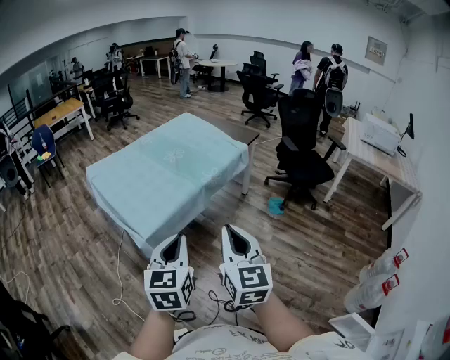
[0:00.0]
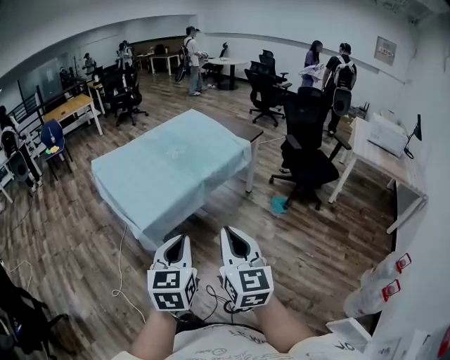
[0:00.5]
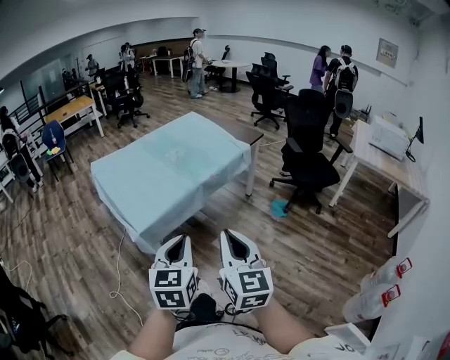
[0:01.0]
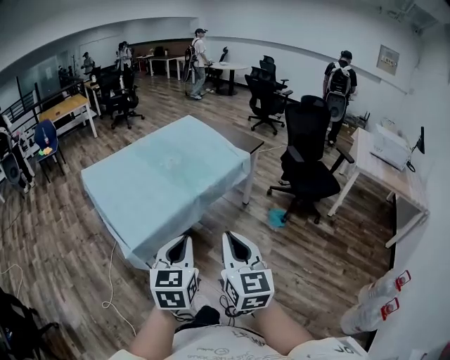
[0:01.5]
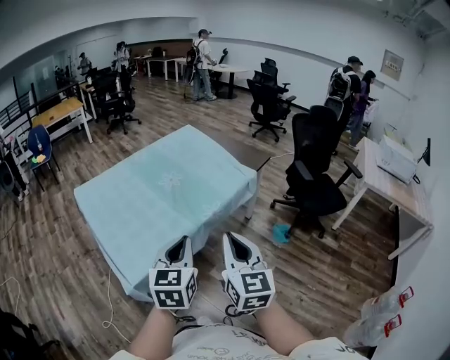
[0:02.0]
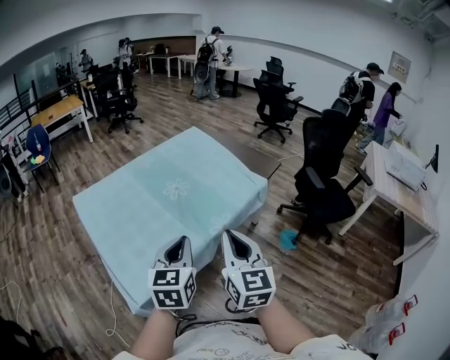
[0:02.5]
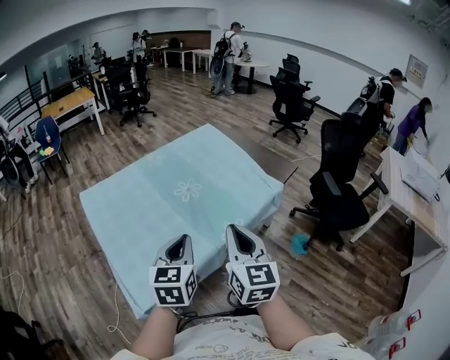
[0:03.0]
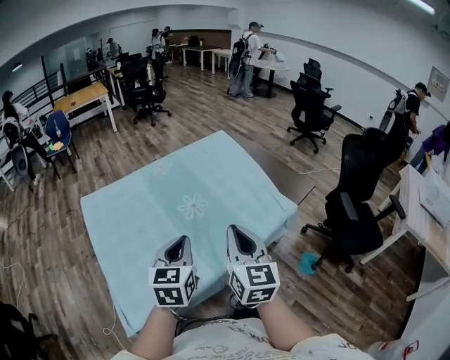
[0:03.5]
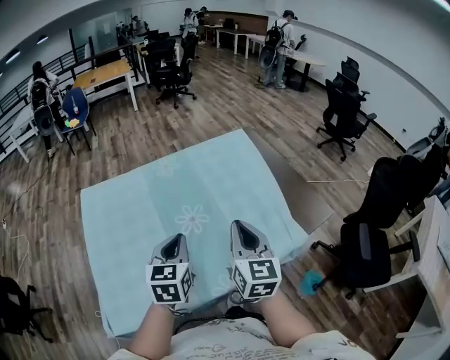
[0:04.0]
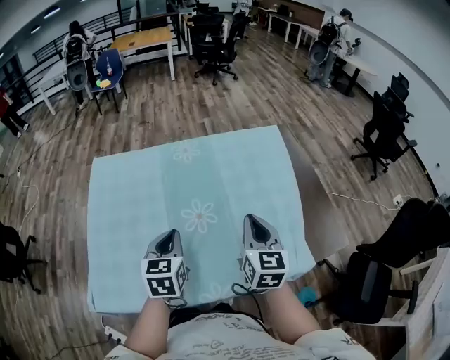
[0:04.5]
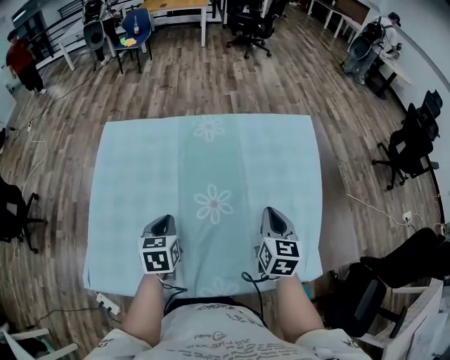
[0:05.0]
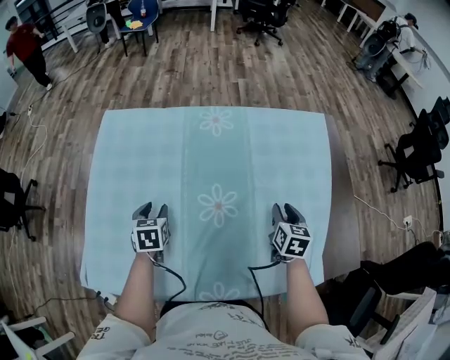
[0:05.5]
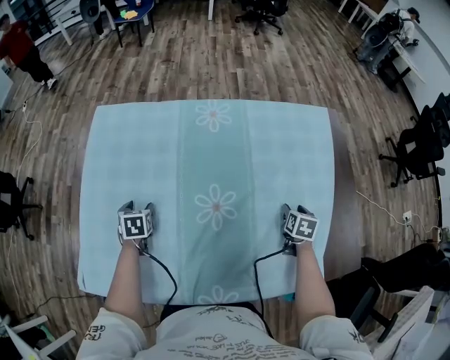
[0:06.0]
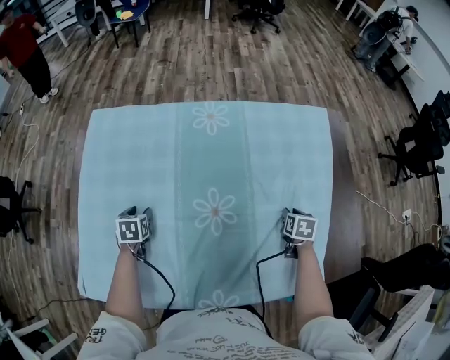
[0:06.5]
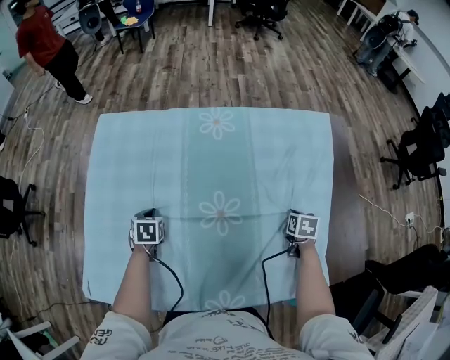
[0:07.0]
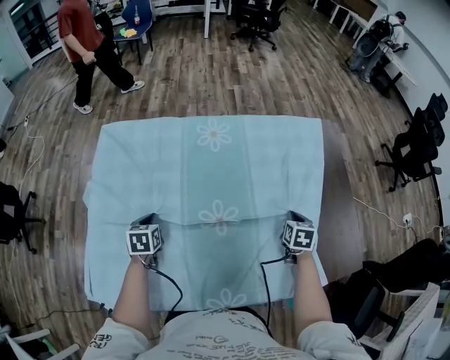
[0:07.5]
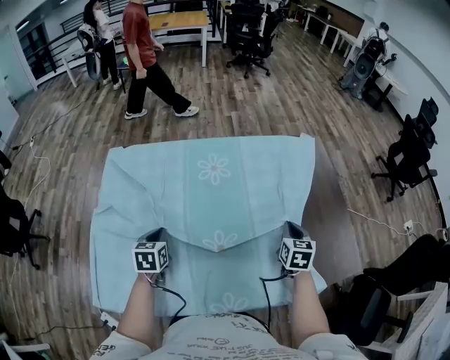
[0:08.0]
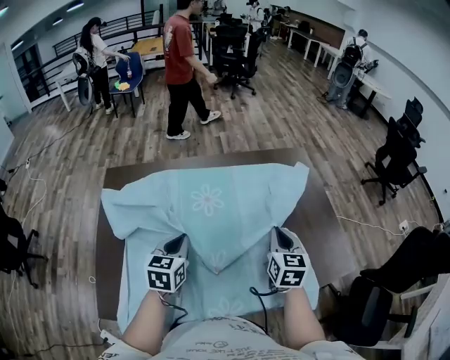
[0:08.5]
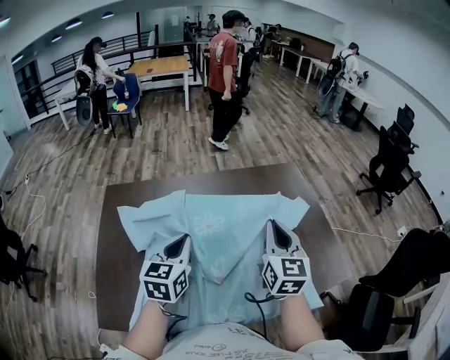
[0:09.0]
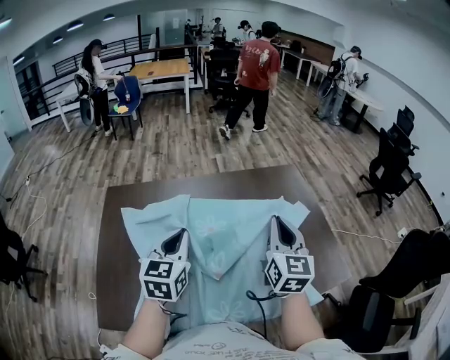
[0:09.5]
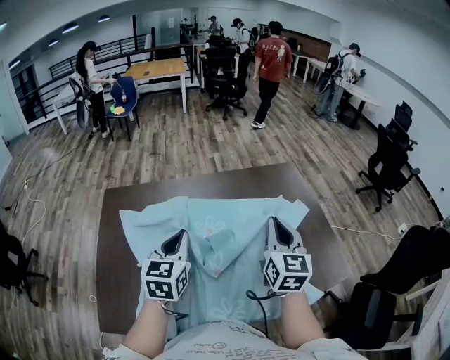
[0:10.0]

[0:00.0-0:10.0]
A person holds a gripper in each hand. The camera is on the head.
0:00.0 to 0:02.0: Both grippers move forward, approximately 25 cm.
0:02.0 to 0:04.0: Both grippers are carried forward, roughly 50 cm. The left gripper turns by approximately 30 degrees.
0:04.0 to 0:06.0: The right gripper moves downward, forward and to the right, roughly 50 cm, tilts its fingers some 50 degrees downward, and opens its fingers, while the left gripper heads downward, to the left and forward, covering roughly 40 cm, tilts its fingers some 40 degrees downward, and opens its fingers.
0:06.0 to 0:08.0: The left gripper shifts some 15 cm upward and to the right, and closes up; the right gripper moves upward, to the left and backward, roughly 15 cm, turns by approximately 20 degrees, and closes.
0:08.0 to 0:10.0: The right gripper goes roughly 20 cm upward, and tips its fingers upward by approximately 30 degrees. Meanwhile the left gripper shifts roughly 25 cm upward and to the right, and changes its angle by about 30 degrees.

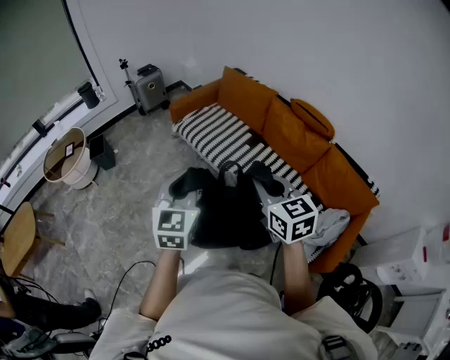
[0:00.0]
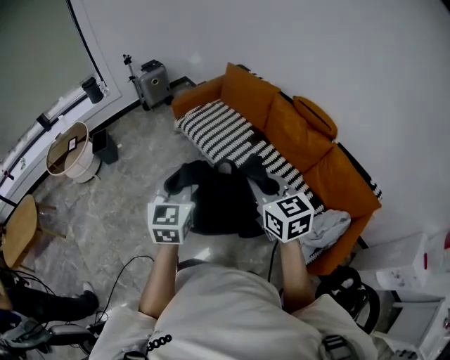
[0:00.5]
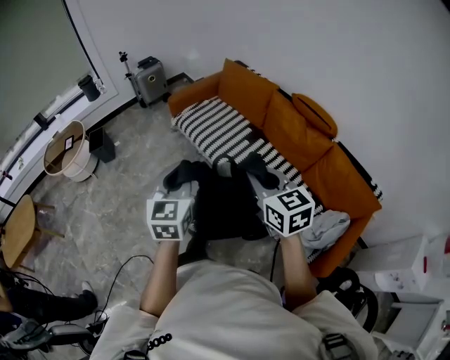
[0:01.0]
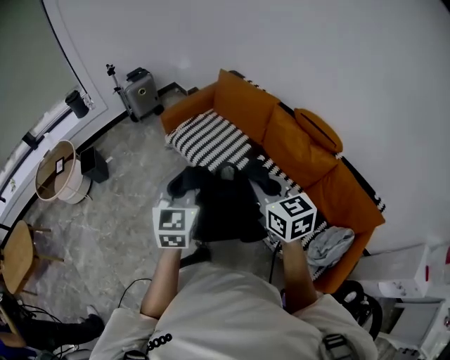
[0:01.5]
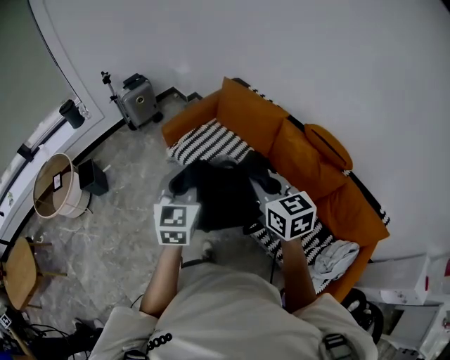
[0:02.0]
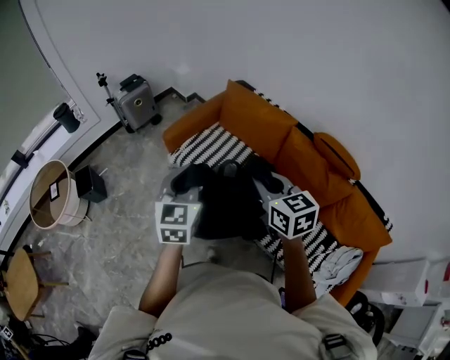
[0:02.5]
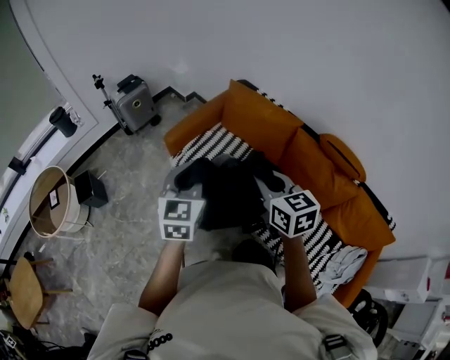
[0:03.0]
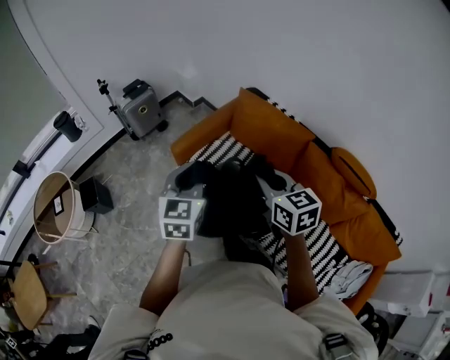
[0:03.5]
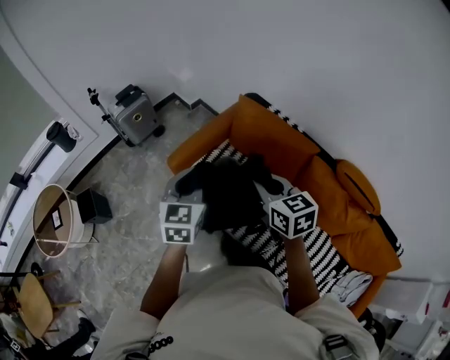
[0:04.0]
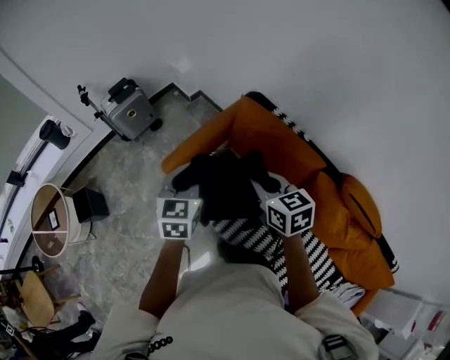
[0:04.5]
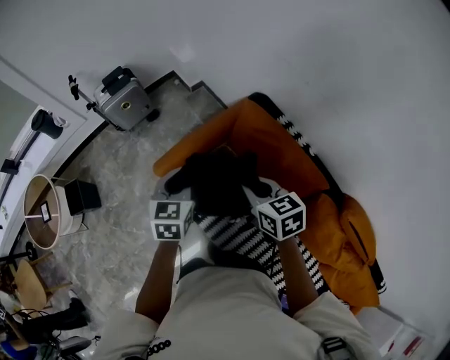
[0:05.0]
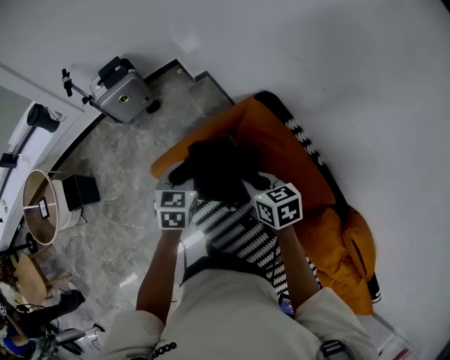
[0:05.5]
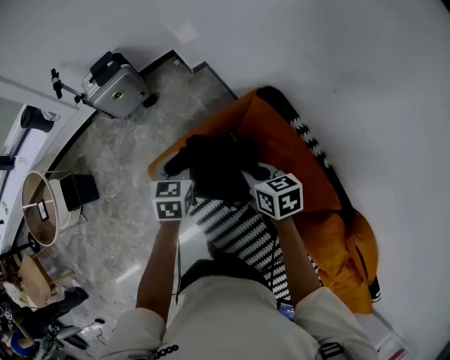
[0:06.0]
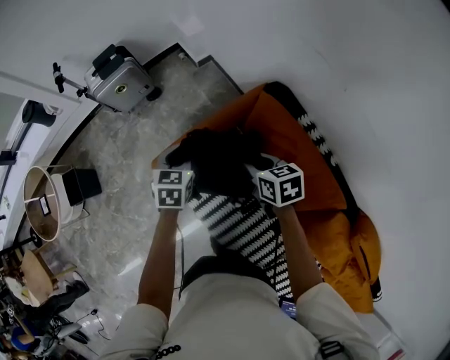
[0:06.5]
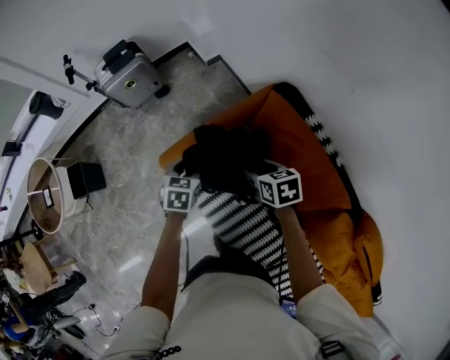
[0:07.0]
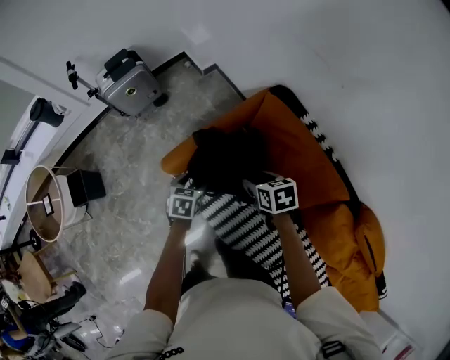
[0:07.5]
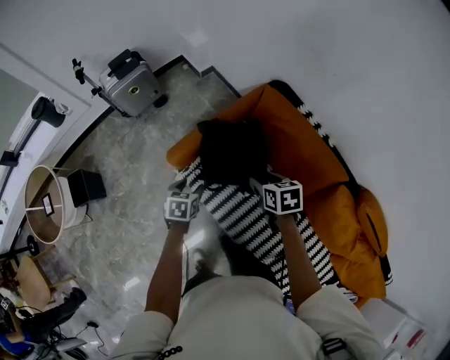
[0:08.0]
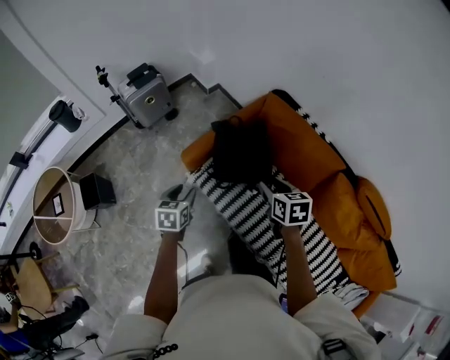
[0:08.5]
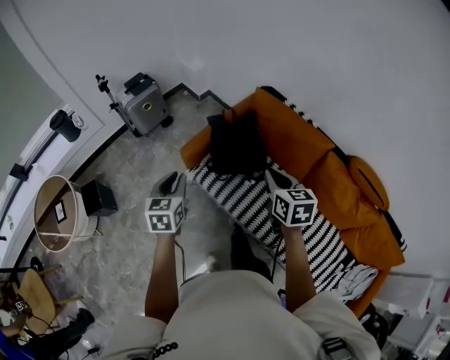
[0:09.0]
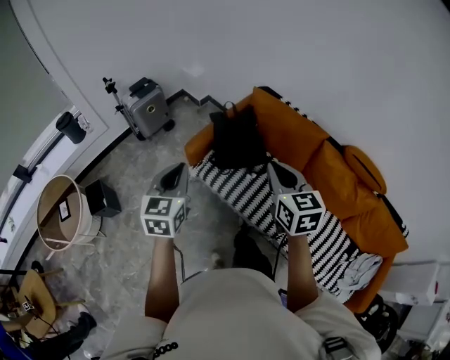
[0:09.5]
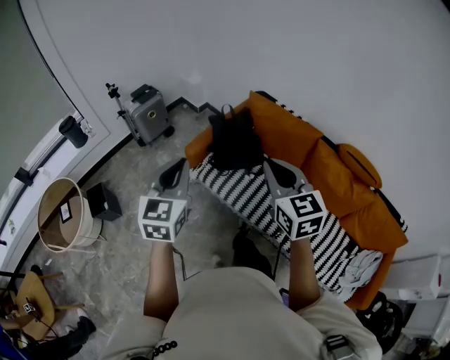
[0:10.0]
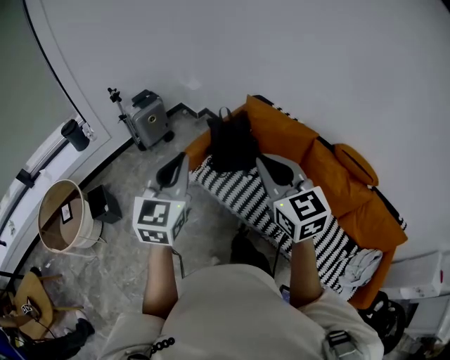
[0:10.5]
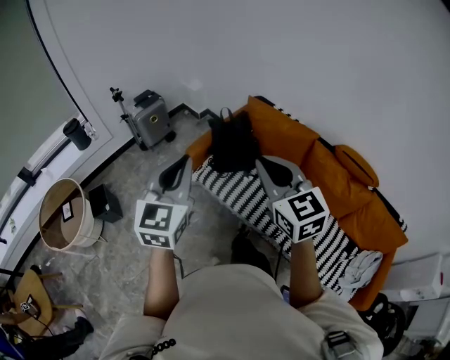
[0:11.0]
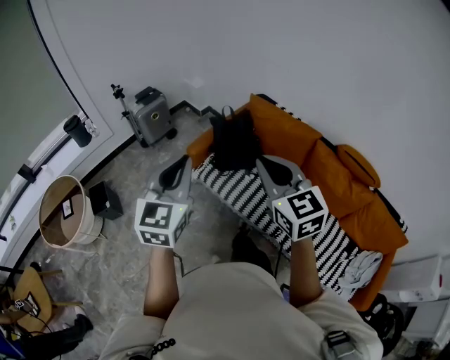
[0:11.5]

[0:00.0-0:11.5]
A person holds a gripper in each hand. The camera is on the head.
0:00.0 to 0:02.0: The two grippers go about 35 cm forward.
0:02.0 to 0:04.0: The grippers both shift forward by about 35 cm.
0:04.0 to 0:06.0: Both grippers travel together forward and downward, roughly 40 cm. The right gripper rotates approximately 30 degrees, while the left gripper swivels about 30 degrees.
0:06.0 to 0:07.5: The left gripper moves downward, backward and to the left, roughly 20 cm, and opens its fingers. The right gripper shifts some 10 cm backward and downward, and opens its fingers.
0:07.5 to 0:09.5: The left gripper heads upward, backward and to the left, covering approximately 50 cm, tilts its fingers approximately 40 degrees upward, and closes its fingers. Meanwhile the right gripper heads backward and upward, covering some 50 cm, tilts its fingers approximately 30 degrees upward, and closes.
0:09.5 to 0:11.5: The left gripper heads upward and backward, covering roughly 15 cm. Meanwhile the right gripper goes about 15 cm backward and upward.

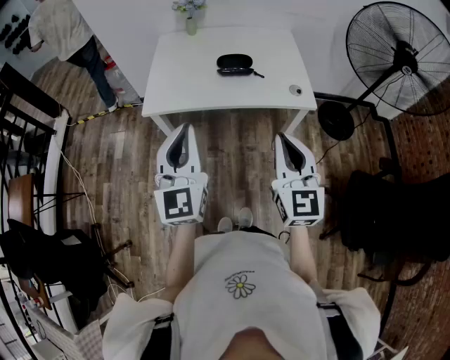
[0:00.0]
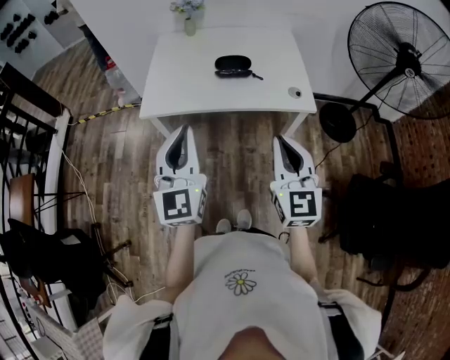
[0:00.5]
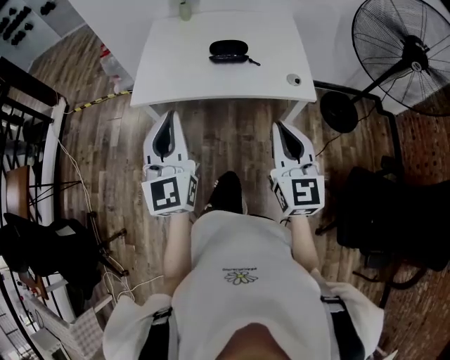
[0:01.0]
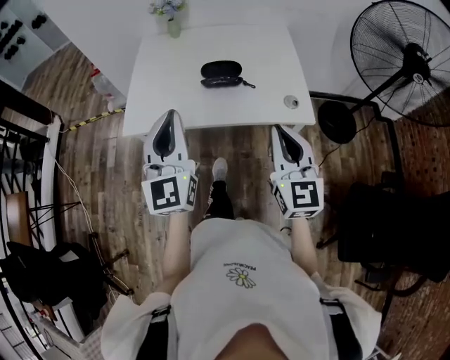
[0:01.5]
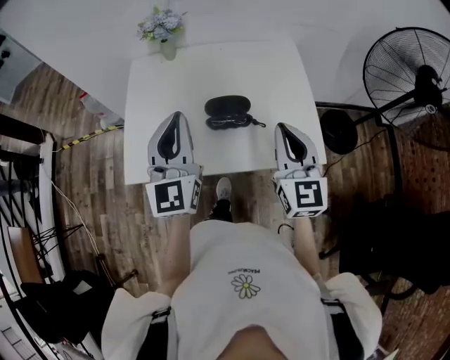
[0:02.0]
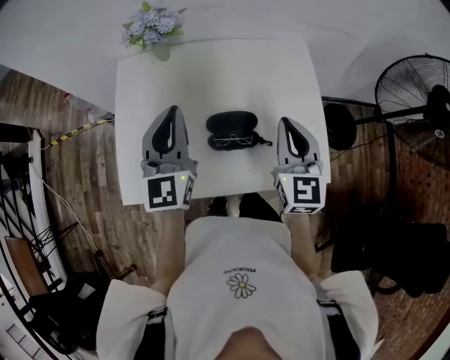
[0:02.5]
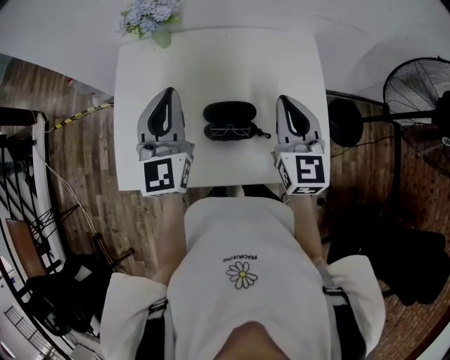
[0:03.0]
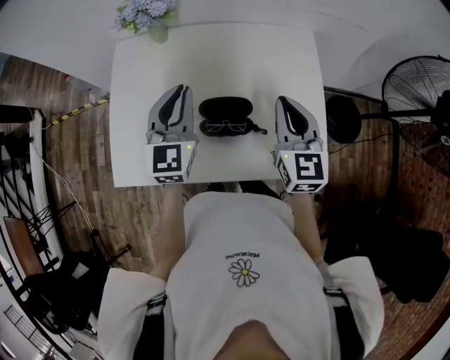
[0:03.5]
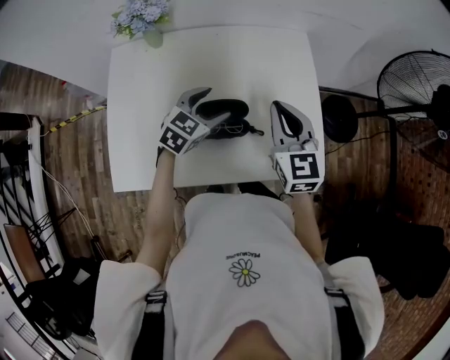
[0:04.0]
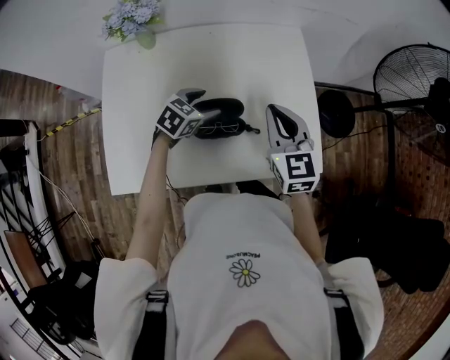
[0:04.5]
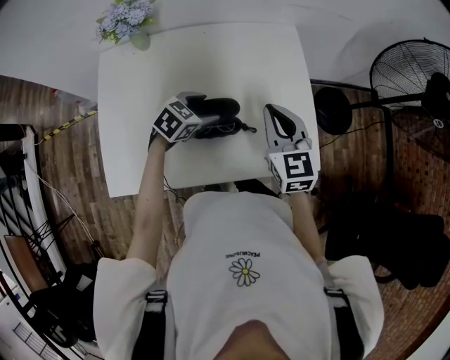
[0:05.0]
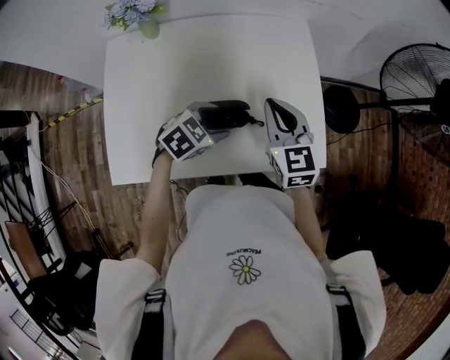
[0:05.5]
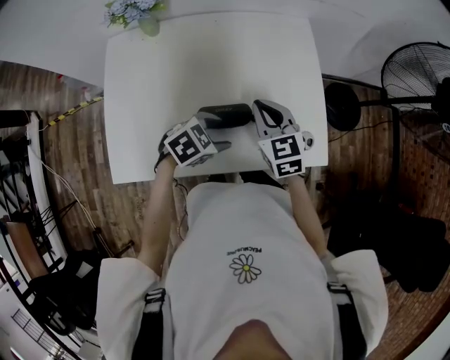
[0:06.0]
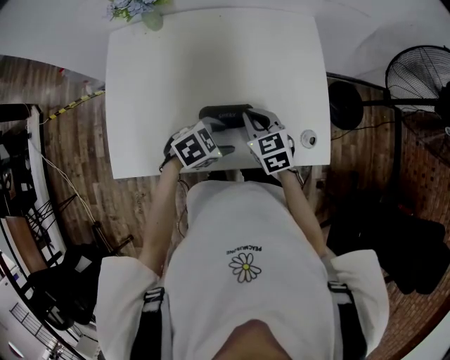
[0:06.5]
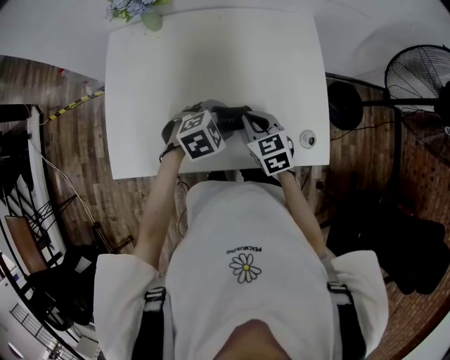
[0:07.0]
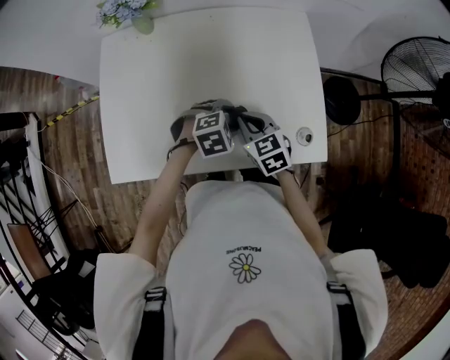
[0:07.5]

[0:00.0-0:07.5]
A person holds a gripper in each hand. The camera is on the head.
0:00.0 to 0:02.0: Both grippers travel together forward, roughly 35 cm.
0:02.0 to 0:04.0: The left gripper goes approximately 30 cm downward, forward and to the right, points its fingers approximately 40 degrees further downward, and opens. Meanwhile the right gripper moves forward, roughly 15 cm.
0:04.0 to 0:05.5: The left gripper is displaced backward by roughly 5 cm, and swivels roughly 20 degrees.
0:05.5 to 0:07.5: The right gripper moves downward, approximately 15 cm, and rotates approximately 20 degrees. The left gripper moves downward, some 5 cm, and rotates about 20 degrees.
